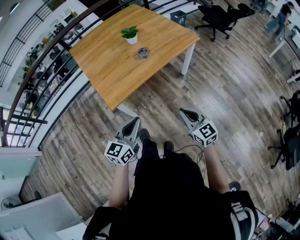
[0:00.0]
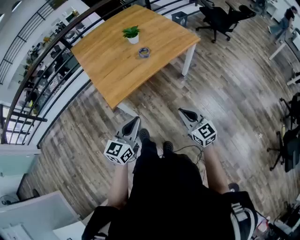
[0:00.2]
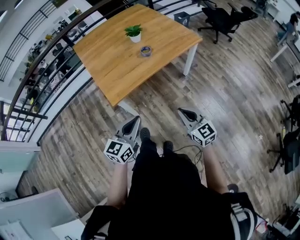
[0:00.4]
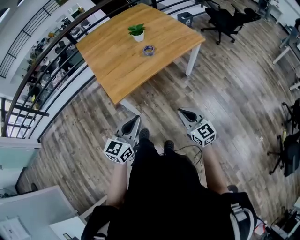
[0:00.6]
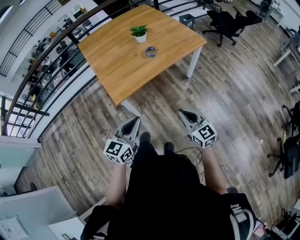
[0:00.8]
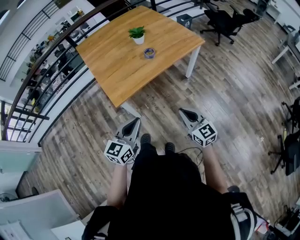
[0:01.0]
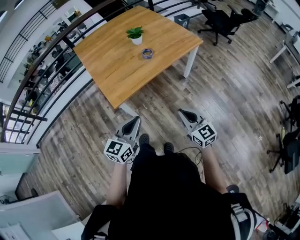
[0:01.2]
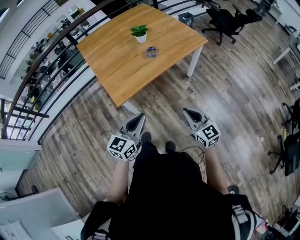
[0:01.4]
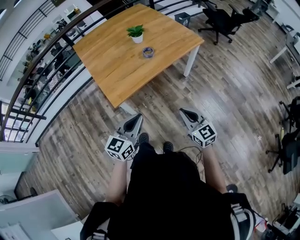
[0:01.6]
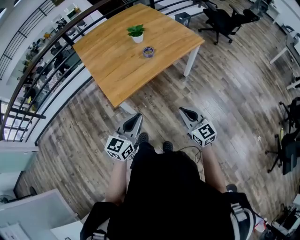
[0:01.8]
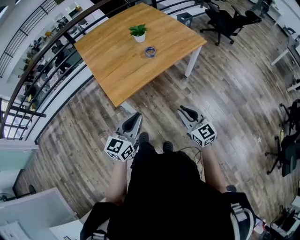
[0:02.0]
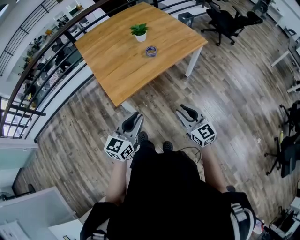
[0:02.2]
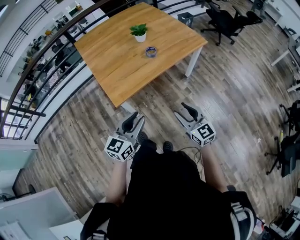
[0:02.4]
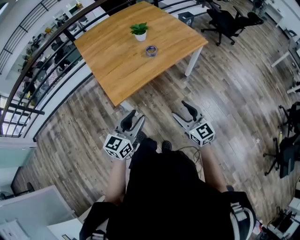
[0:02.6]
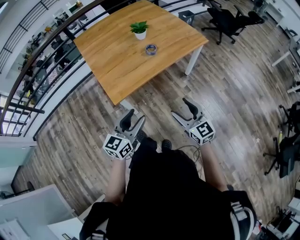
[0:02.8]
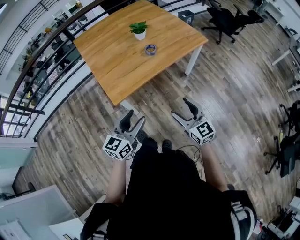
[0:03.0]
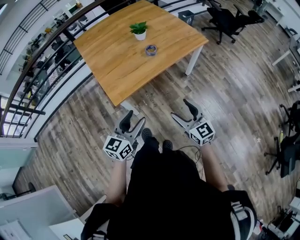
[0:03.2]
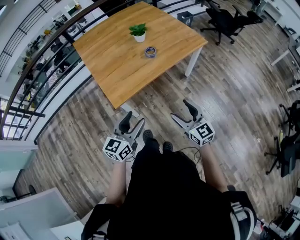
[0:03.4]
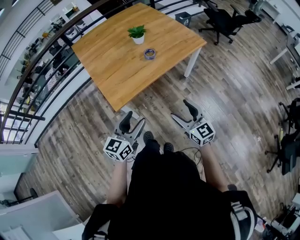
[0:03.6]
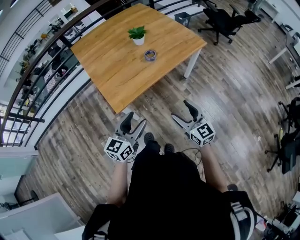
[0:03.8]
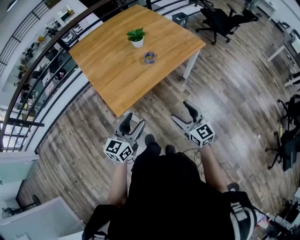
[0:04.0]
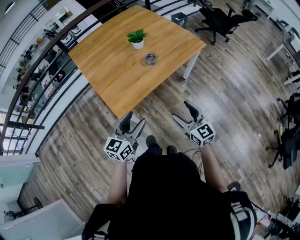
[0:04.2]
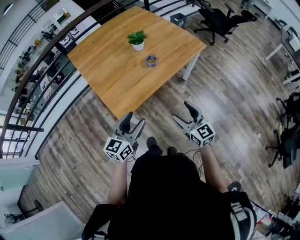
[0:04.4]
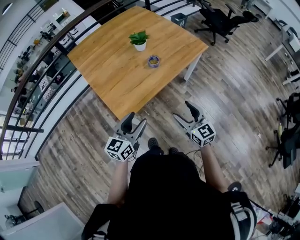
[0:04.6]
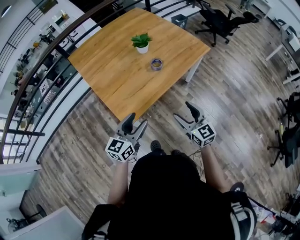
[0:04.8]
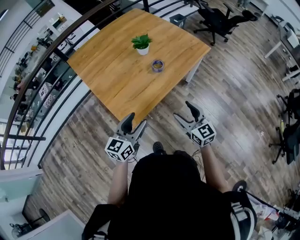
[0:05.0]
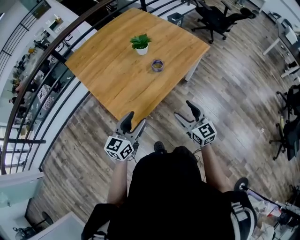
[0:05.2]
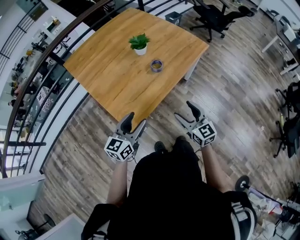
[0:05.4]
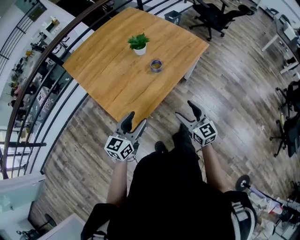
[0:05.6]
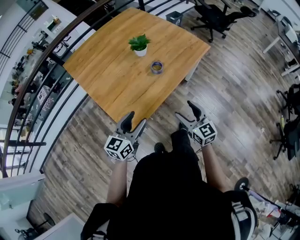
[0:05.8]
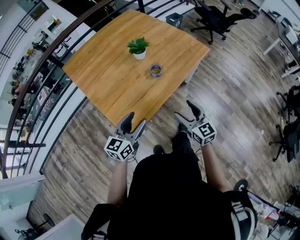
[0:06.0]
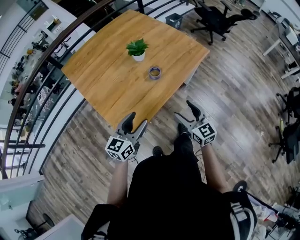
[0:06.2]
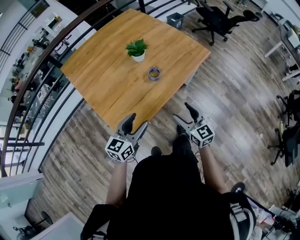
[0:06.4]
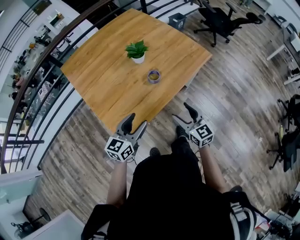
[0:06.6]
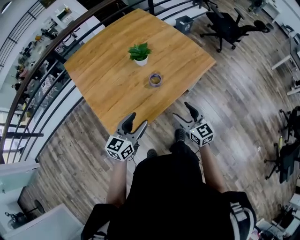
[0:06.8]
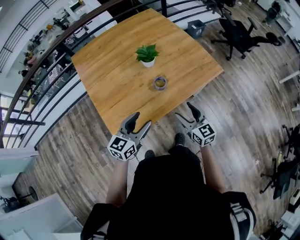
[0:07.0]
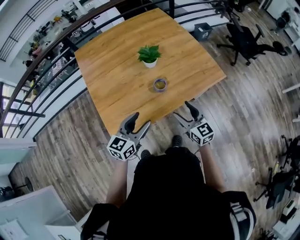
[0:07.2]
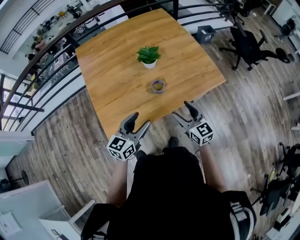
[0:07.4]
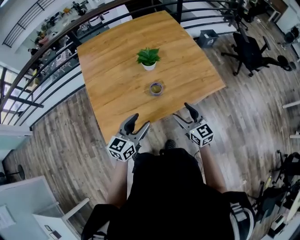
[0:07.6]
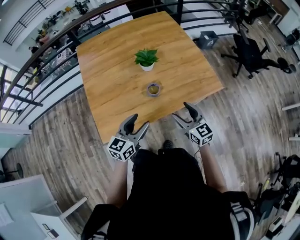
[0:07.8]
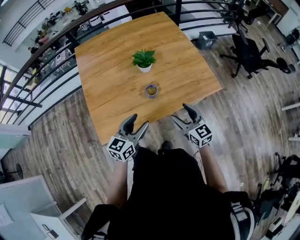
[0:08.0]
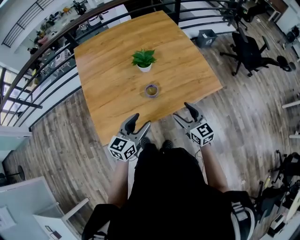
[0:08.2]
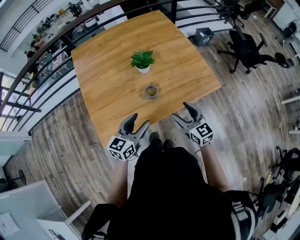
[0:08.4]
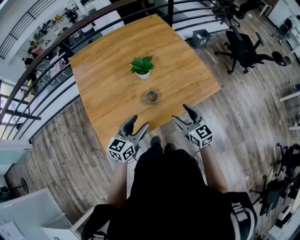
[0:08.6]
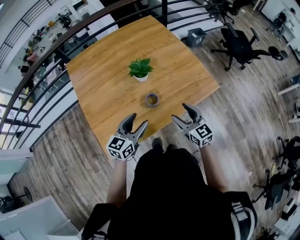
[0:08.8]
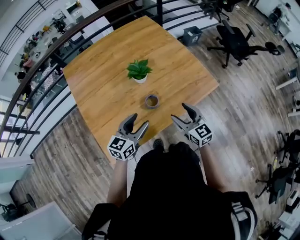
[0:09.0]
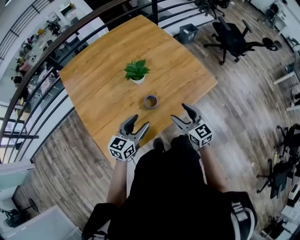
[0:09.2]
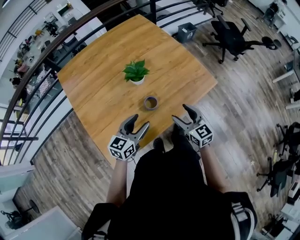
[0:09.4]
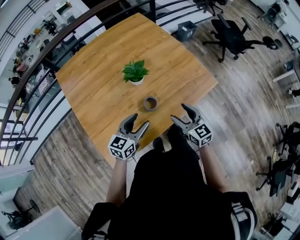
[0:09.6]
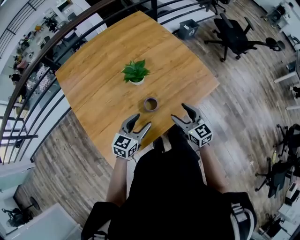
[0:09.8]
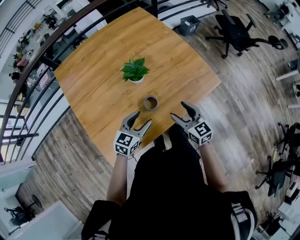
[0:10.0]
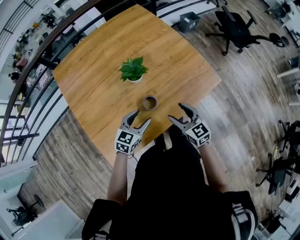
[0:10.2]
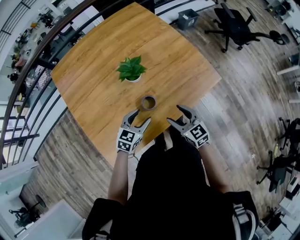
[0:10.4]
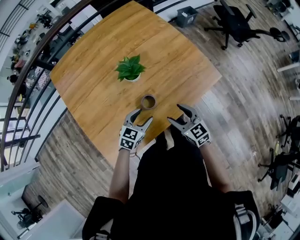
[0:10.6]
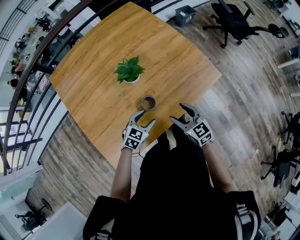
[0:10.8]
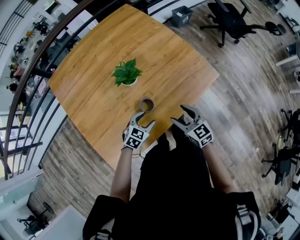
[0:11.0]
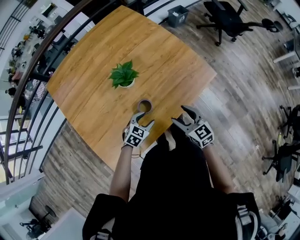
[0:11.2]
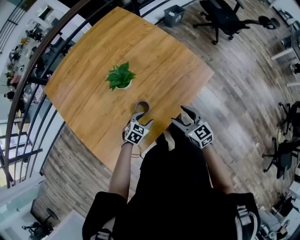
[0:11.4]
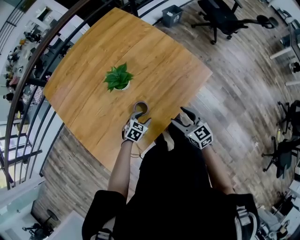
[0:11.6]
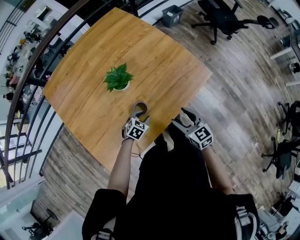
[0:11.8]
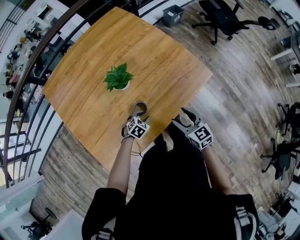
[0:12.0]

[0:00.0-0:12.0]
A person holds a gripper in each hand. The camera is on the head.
0:00.0 to 0:01.6: The grippers stay close to where they were, moving slightly.
0:01.6 to 0:03.0: The left gripper opens. Meanwhile the right gripper opens up.
0:03.0 to 0:04.4: The right gripper moves forward, approximately 5 cm; the left gripper goes some 10 cm forward and to the left.
0:04.4 to 0:06.0: The grippers both shift forward by about 10 cm.
0:06.0 to 0:07.6: The right gripper travels forward and to the right by roughly 20 cm, and turns by about 20 degrees. The left gripper is displaced to the right and forward by some 15 cm.
0:07.6 to 0:09.0: The right gripper is displaced forward by roughly 5 cm. The left gripper moves forward, approximately 10 cm.
0:09.0 to 0:10.4: The right gripper moves downward, roughly 5 cm, while the left gripper goes some 15 cm downward and forward, and rotates roughly 20 degrees.
0:10.4 to 0:12.0: The right gripper goes approximately 5 cm to the right, while the left gripper travels downward by about 15 cm, changes its angle by roughly 30 degrees, and closes up.

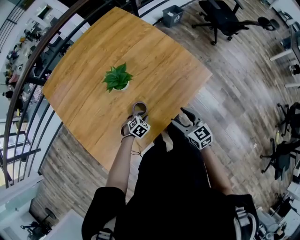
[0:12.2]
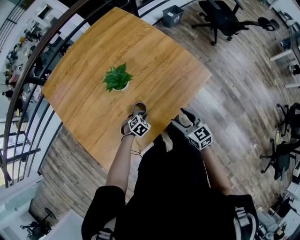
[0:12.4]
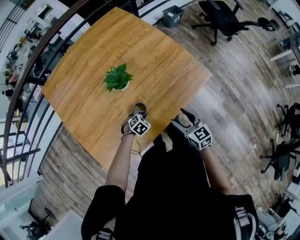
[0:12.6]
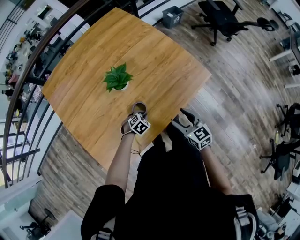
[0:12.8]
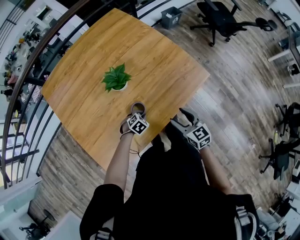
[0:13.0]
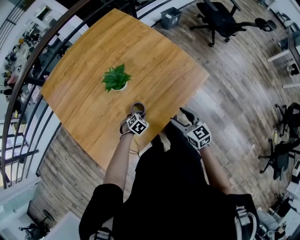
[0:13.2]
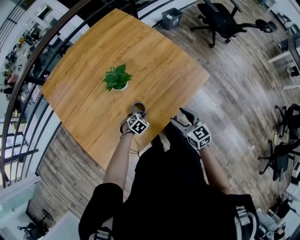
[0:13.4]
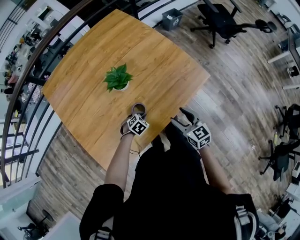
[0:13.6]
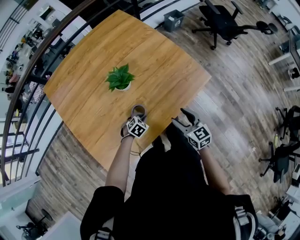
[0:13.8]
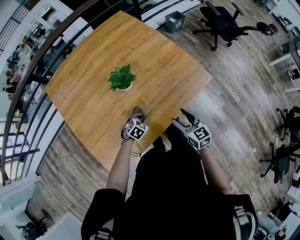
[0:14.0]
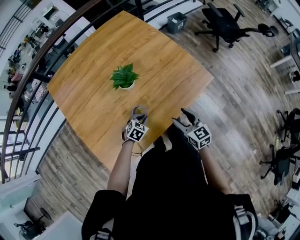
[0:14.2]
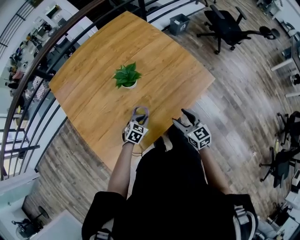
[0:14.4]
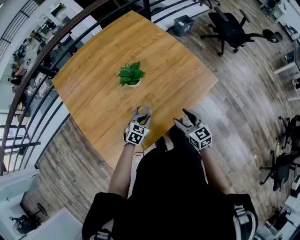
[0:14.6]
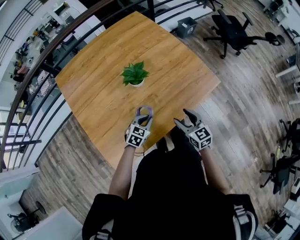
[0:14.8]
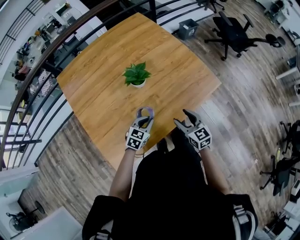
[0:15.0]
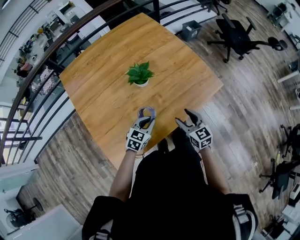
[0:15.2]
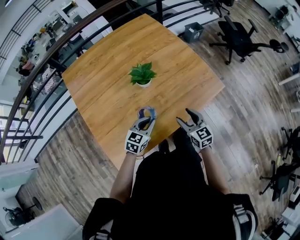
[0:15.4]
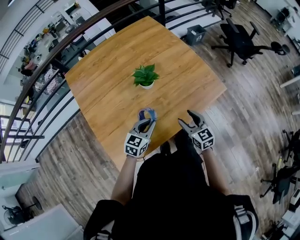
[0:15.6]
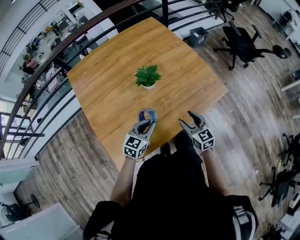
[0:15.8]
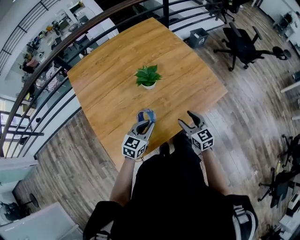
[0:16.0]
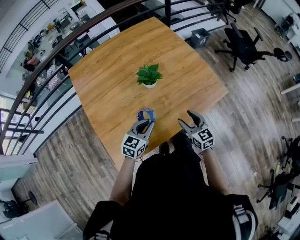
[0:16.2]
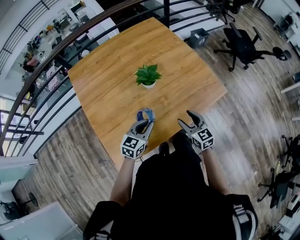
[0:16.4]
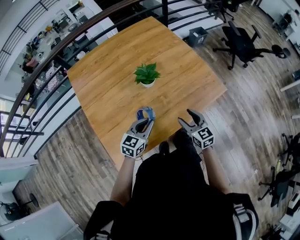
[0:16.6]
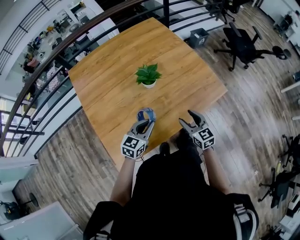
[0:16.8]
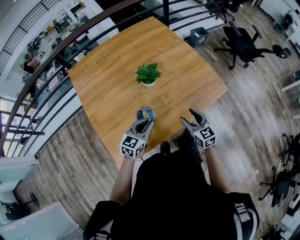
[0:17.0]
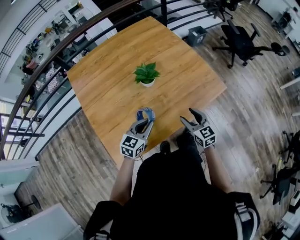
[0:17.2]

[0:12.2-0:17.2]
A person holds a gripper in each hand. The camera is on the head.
0:12.2 to 0:13.8: Both grippers stay put.
0:13.8 to 0:15.6: The right gripper goes roughly 5 cm to the left. The left gripper shifts roughly 20 cm upward, and angles its fingers upward, by roughly 40 degrees.
0:15.6 to 0:17.2: The grippers stay close to where they were, moving slightly.

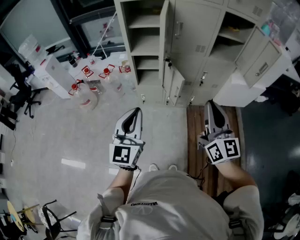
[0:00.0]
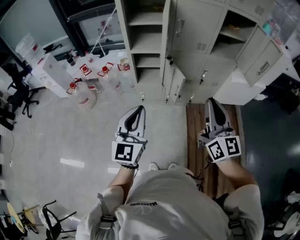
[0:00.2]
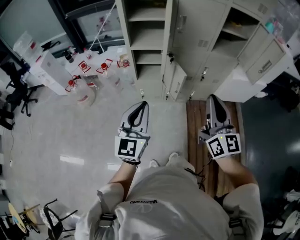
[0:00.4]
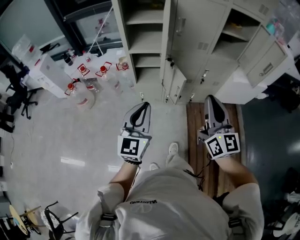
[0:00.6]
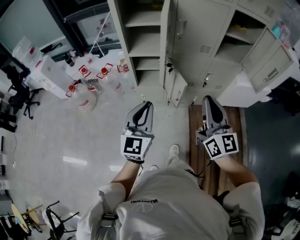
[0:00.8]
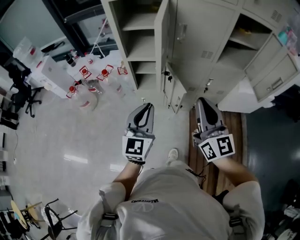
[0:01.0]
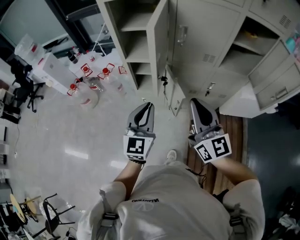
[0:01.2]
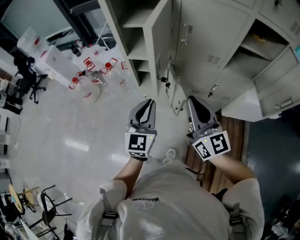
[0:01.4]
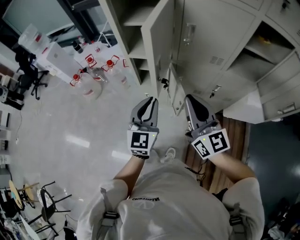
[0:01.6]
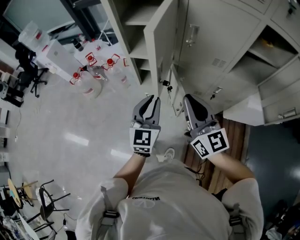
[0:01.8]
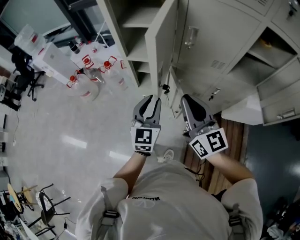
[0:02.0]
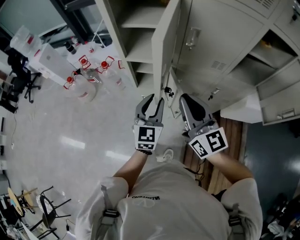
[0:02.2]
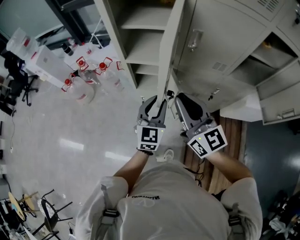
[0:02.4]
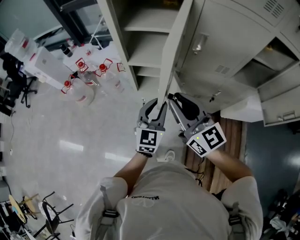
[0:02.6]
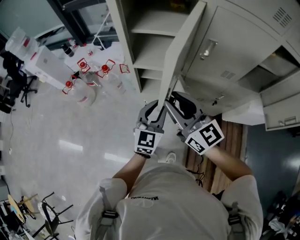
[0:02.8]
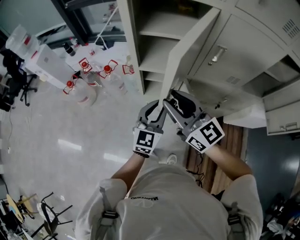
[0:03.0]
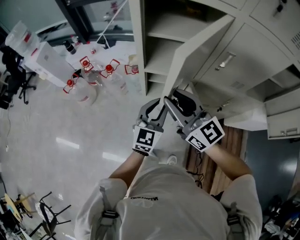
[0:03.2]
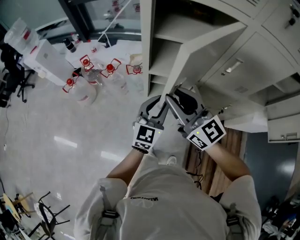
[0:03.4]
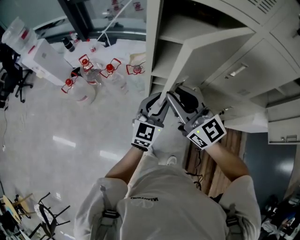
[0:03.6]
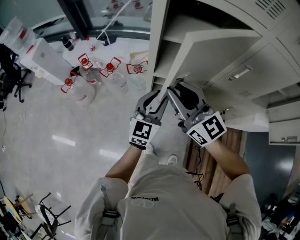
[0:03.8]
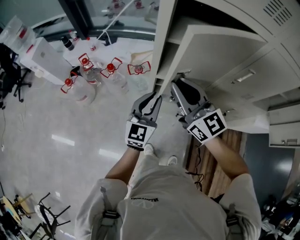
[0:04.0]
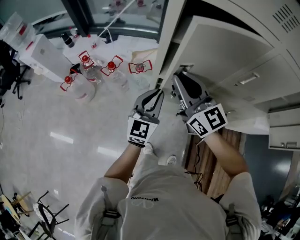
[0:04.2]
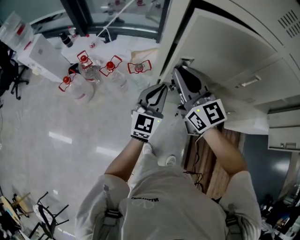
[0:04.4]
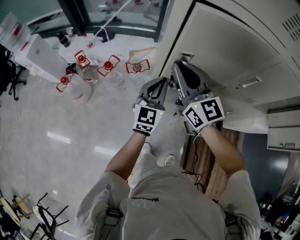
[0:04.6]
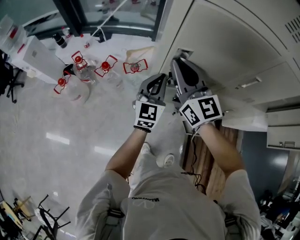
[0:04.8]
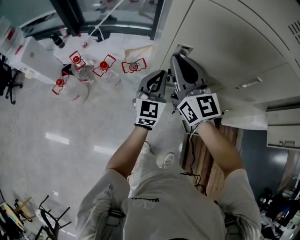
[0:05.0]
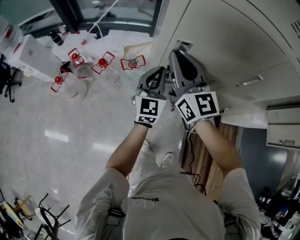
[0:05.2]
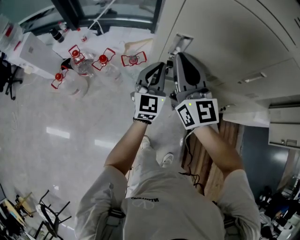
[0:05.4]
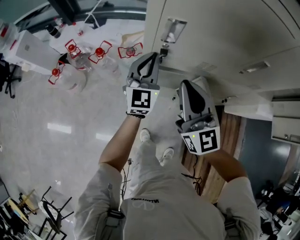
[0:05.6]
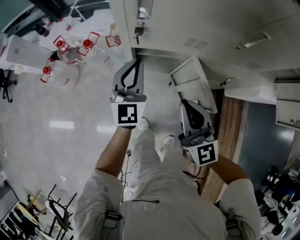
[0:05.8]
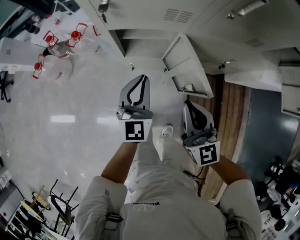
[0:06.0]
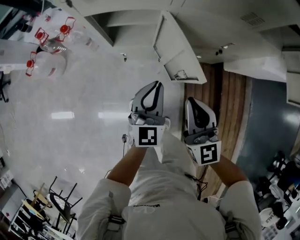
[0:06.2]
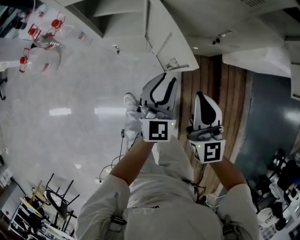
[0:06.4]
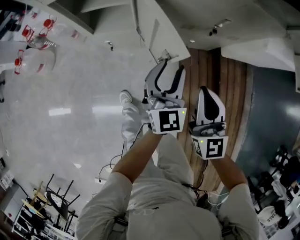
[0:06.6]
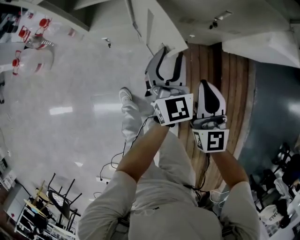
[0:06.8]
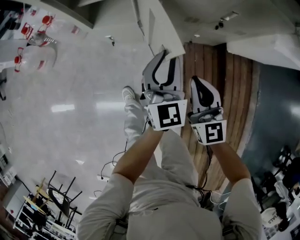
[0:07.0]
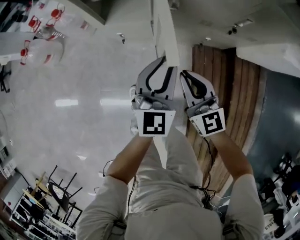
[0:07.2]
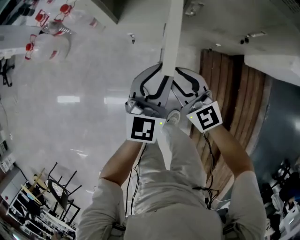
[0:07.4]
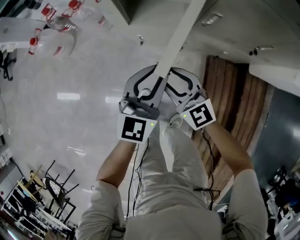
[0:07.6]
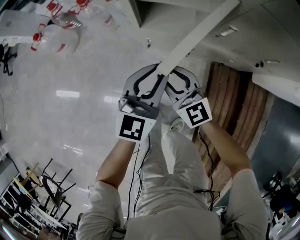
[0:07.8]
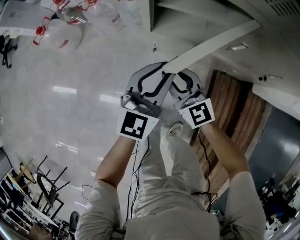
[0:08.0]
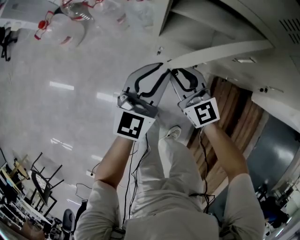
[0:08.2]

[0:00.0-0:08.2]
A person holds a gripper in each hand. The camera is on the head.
0:00.0 to 0:01.6: The right gripper travels forward by some 25 cm, and changes its angle by approximately 20 degrees. The left gripper moves forward and to the right, some 25 cm.
0:01.6 to 0:03.2: The right gripper heads to the left and forward, covering approximately 25 cm, and opens up. The left gripper goes approximately 15 cm forward and to the left.
0:03.2 to 0:05.0: The two grippers go approximately 20 cm forward. The right gripper closes up. The left gripper closes up.
0:05.0 to 0:06.6: The pair of grippers is taken to the right and backward, about 50 cm. The grippers both shift downward by some 25 cm. The right gripper turns by about 20 degrees. Meanwhile the left gripper opens up.
0:06.6 to 0:08.2: The two grippers go approximately 35 cm to the left and forward. The right gripper changes its angle by about 40 degrees, and opens up; the left gripper closes.
